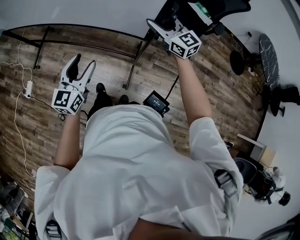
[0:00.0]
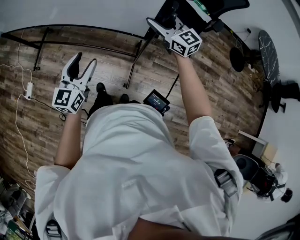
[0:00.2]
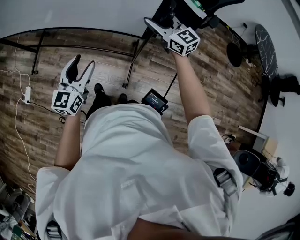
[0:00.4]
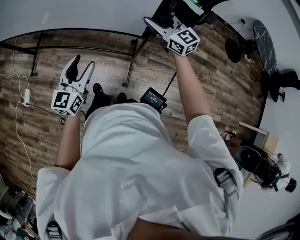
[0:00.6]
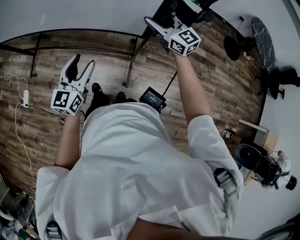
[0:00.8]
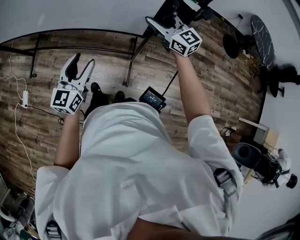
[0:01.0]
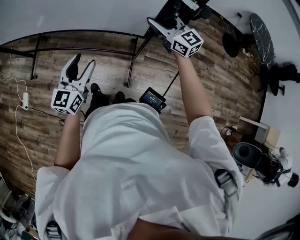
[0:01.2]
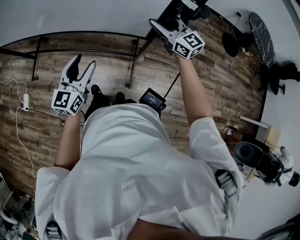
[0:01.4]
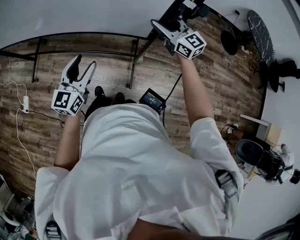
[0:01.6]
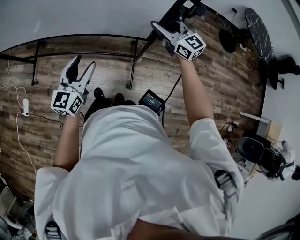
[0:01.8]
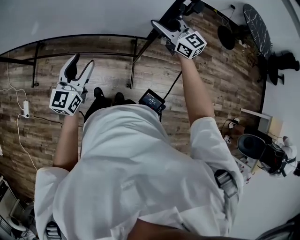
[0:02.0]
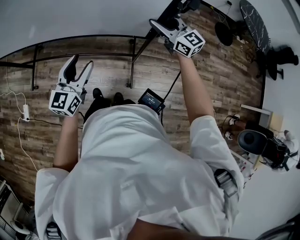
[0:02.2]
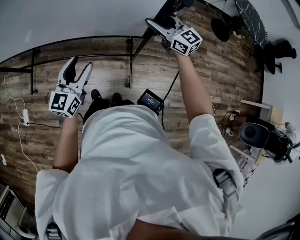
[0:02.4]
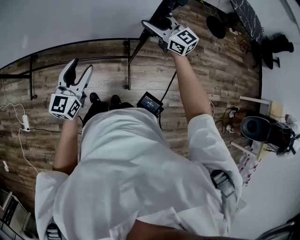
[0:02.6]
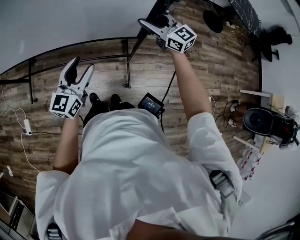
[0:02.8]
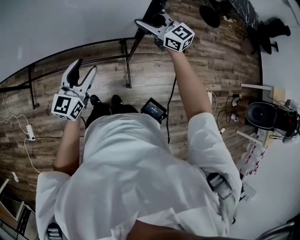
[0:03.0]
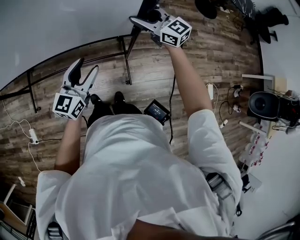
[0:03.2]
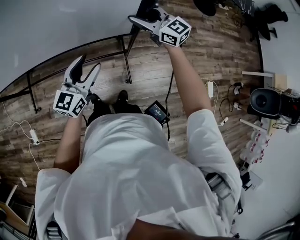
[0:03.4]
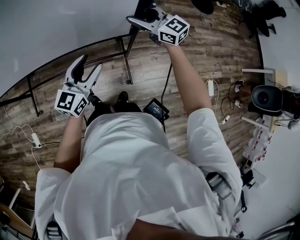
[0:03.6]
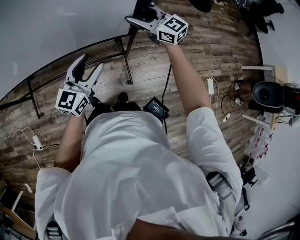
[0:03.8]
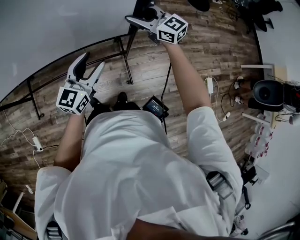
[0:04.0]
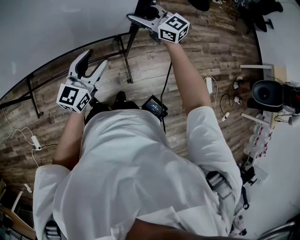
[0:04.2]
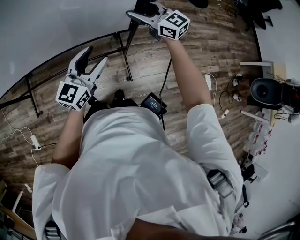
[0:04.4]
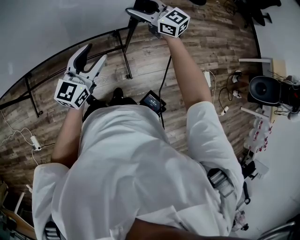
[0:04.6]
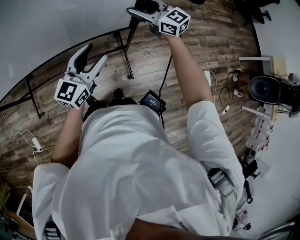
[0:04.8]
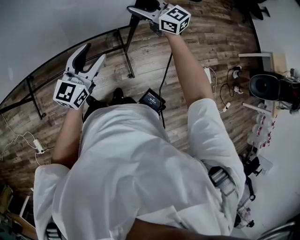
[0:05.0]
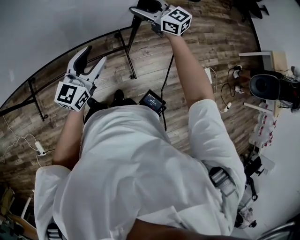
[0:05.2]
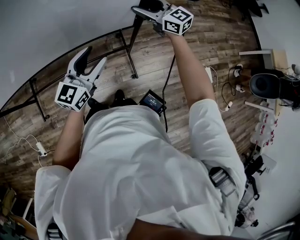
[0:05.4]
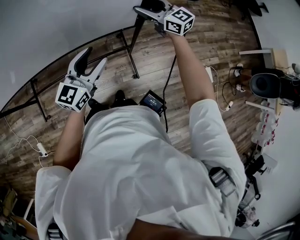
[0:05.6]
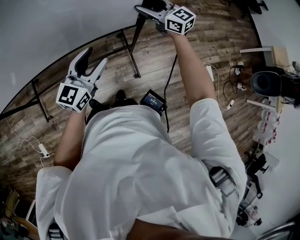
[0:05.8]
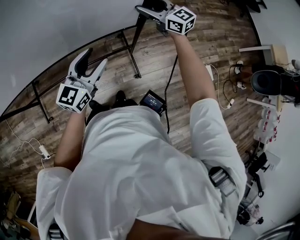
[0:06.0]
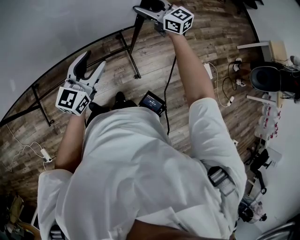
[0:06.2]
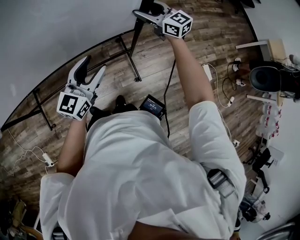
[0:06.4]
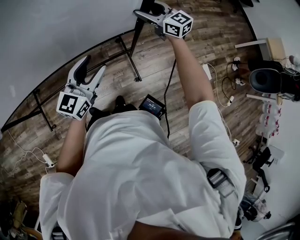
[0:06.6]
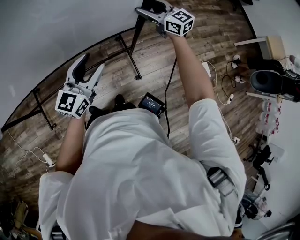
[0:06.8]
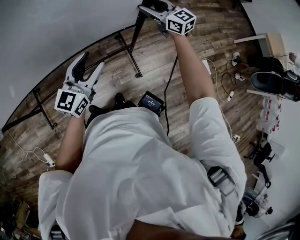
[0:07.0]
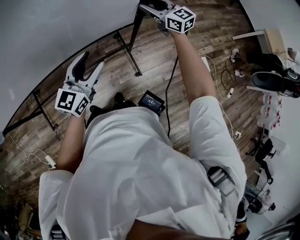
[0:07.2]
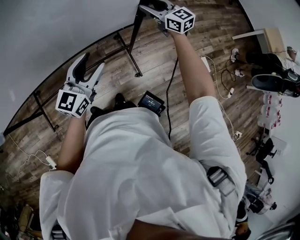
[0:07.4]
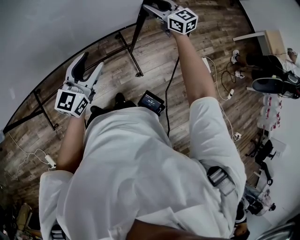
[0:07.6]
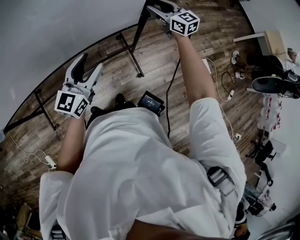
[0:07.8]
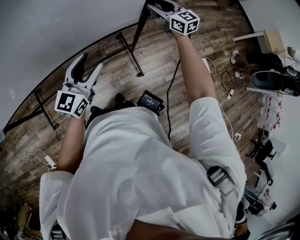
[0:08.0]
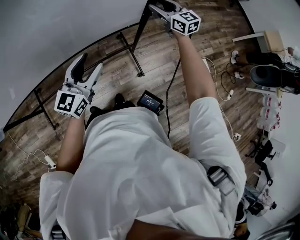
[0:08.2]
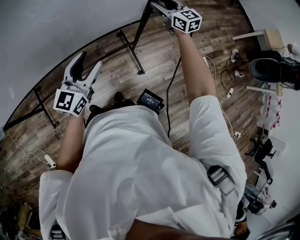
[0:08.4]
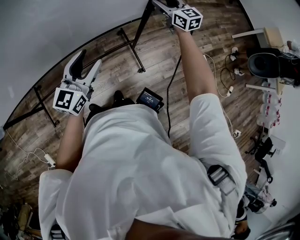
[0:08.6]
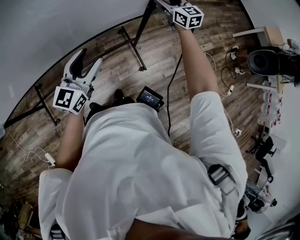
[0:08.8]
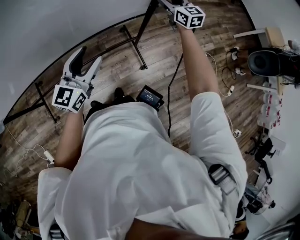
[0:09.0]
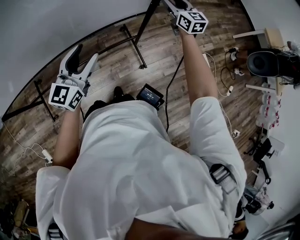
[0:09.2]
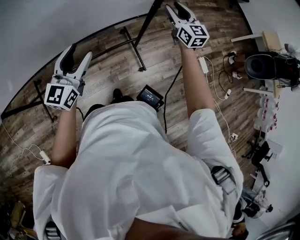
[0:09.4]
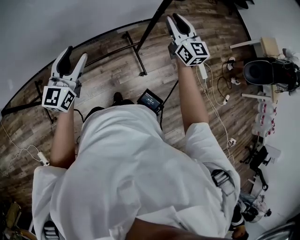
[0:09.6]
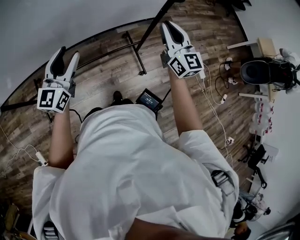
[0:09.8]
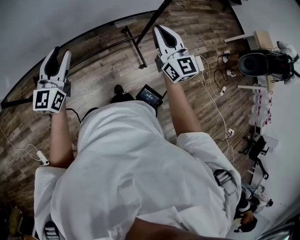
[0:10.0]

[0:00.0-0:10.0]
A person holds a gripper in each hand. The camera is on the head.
0:00.0 to 0:01.4: Both grippers travel together to the right, approximately 10 cm.
0:01.4 to 0:02.8: The grippers both shift to the right by about 10 cm.
0:02.8 to 0:04.2: The right gripper heads to the right, covering some 10 cm. The left gripper moves to the right, approximately 15 cm.
0:04.2 to 0:05.8: The right gripper travels to the right by some 10 cm, while the left gripper is displaced to the right by roughly 5 cm.
0:05.8 to 0:07.2: The right gripper is displaced to the right by about 10 cm.
0:07.2 to 0:08.6: The right gripper travels to the right by approximately 5 cm.
0:08.6 to 0:10.0: The left gripper heads to the left and backward, covering approximately 25 cm; the right gripper travels backward and to the left by approximately 35 cm, and closes up.

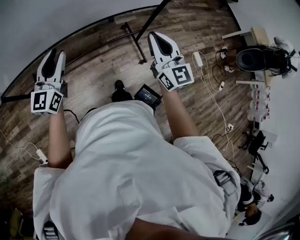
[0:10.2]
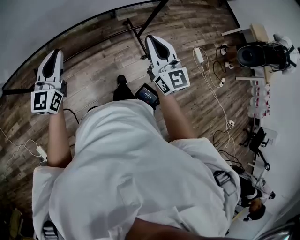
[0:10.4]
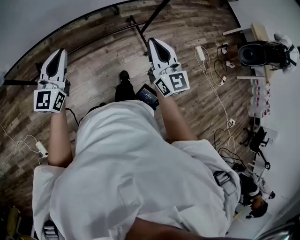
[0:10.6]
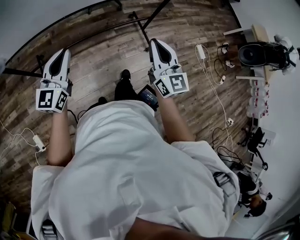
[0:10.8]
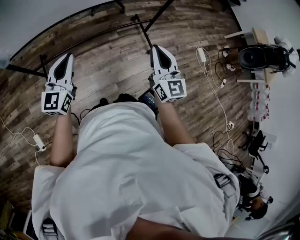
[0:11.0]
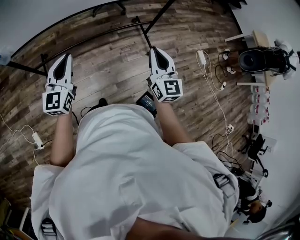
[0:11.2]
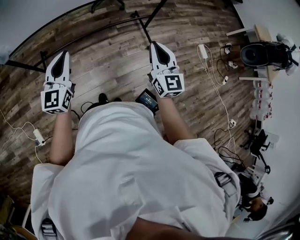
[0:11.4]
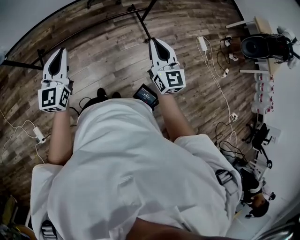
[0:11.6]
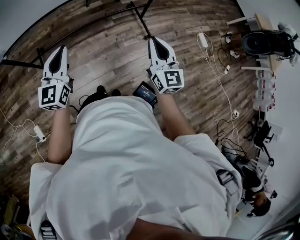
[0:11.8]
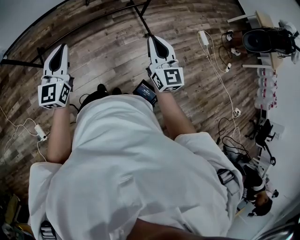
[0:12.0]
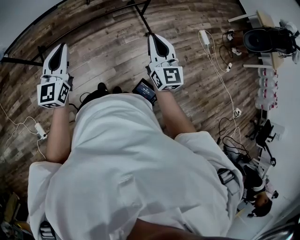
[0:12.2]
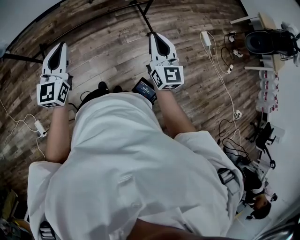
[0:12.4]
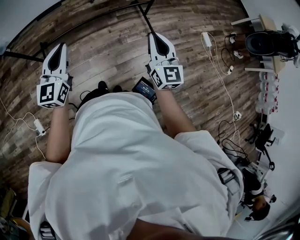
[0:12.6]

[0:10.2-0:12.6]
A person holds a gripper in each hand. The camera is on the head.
0:10.2 to 0:11.4: Both grippers travel together backward, about 25 cm. The left gripper closes up.
0:11.4 to 0:12.6: The right gripper goes roughly 5 cm backward; the left gripper shifts about 10 cm backward and to the right.

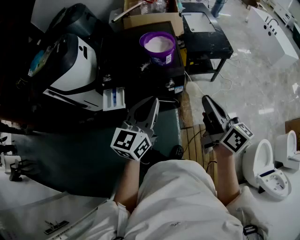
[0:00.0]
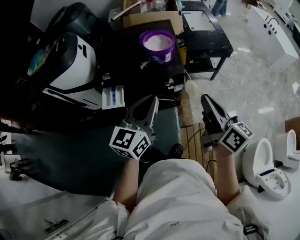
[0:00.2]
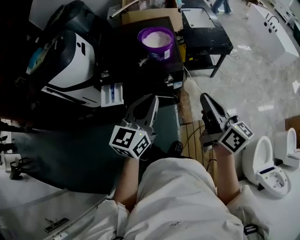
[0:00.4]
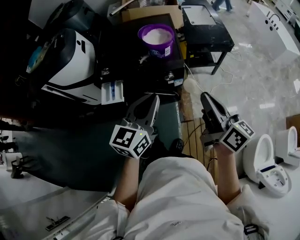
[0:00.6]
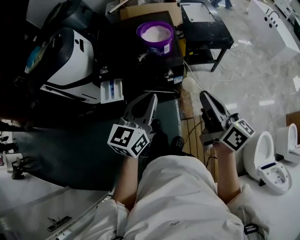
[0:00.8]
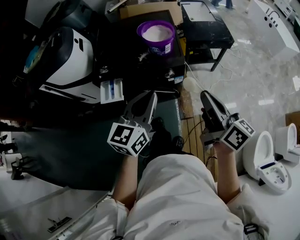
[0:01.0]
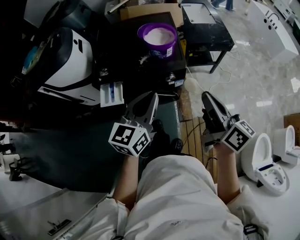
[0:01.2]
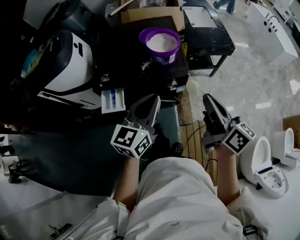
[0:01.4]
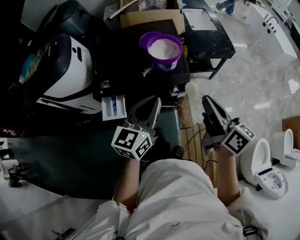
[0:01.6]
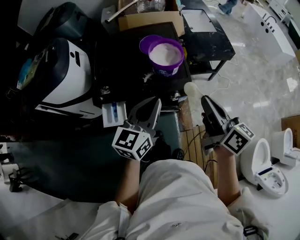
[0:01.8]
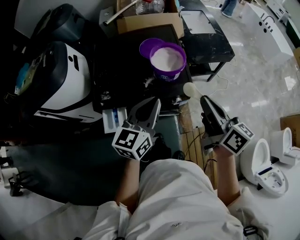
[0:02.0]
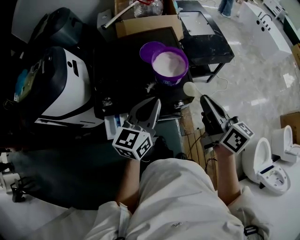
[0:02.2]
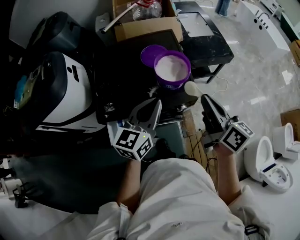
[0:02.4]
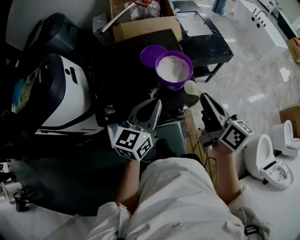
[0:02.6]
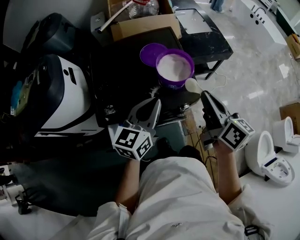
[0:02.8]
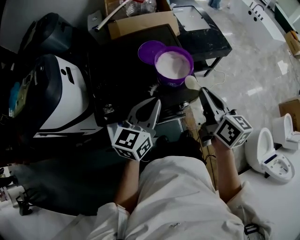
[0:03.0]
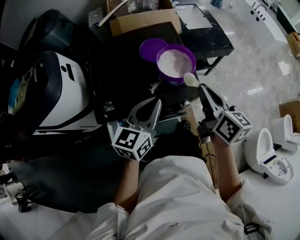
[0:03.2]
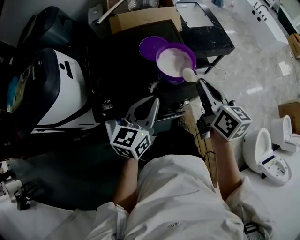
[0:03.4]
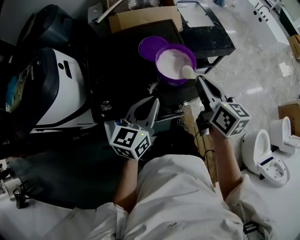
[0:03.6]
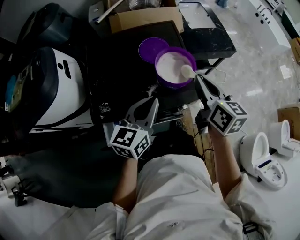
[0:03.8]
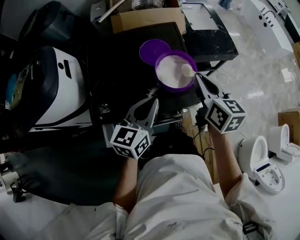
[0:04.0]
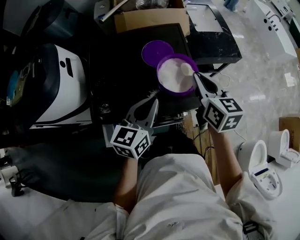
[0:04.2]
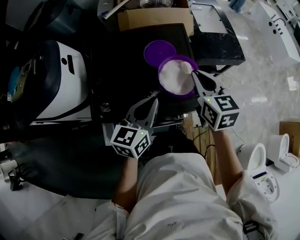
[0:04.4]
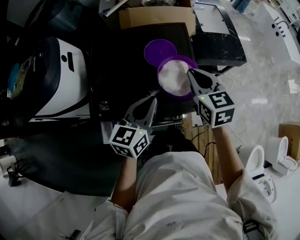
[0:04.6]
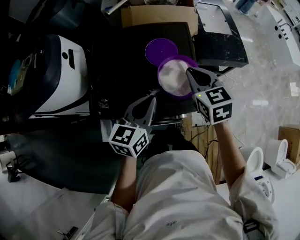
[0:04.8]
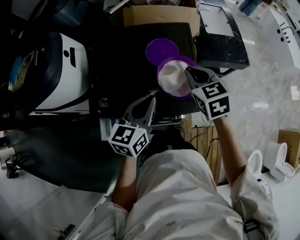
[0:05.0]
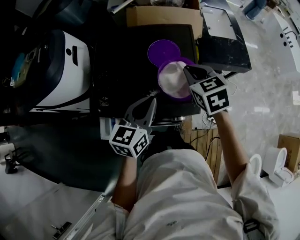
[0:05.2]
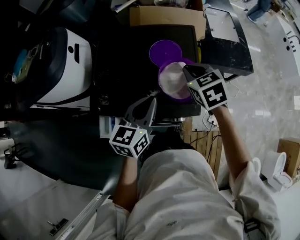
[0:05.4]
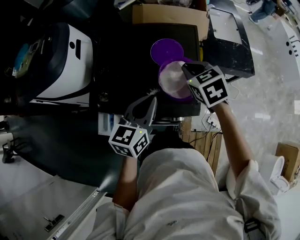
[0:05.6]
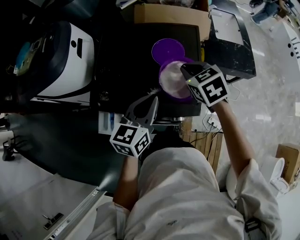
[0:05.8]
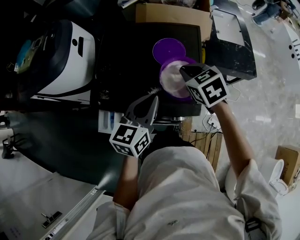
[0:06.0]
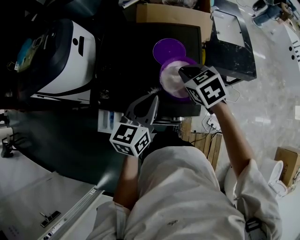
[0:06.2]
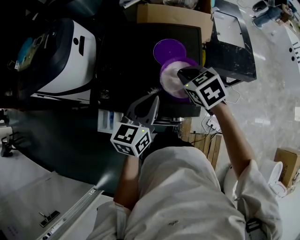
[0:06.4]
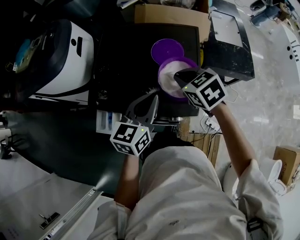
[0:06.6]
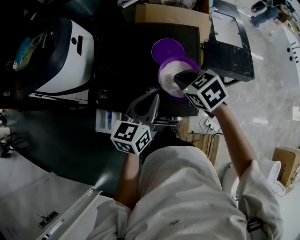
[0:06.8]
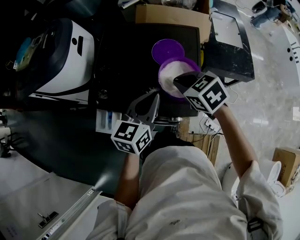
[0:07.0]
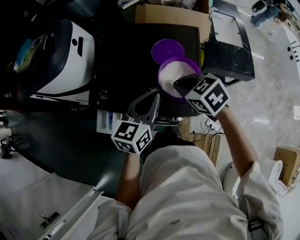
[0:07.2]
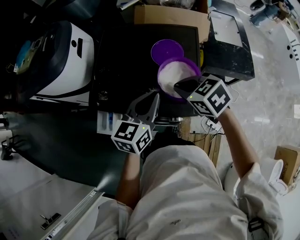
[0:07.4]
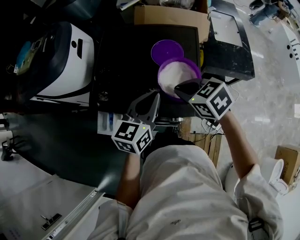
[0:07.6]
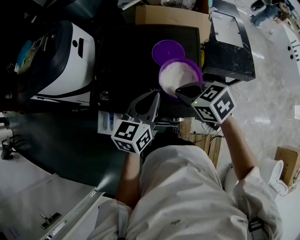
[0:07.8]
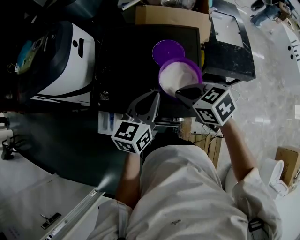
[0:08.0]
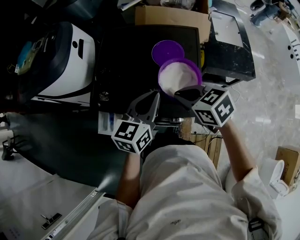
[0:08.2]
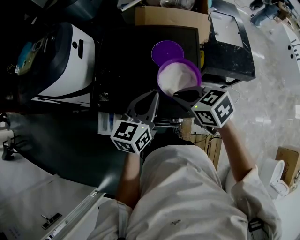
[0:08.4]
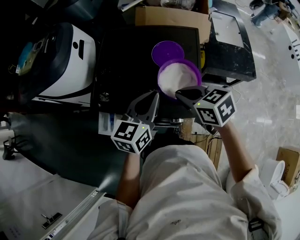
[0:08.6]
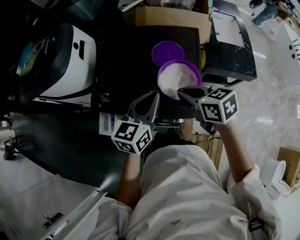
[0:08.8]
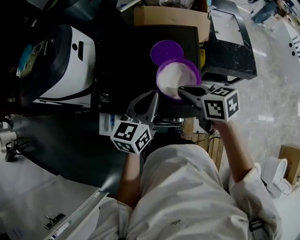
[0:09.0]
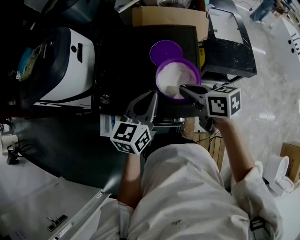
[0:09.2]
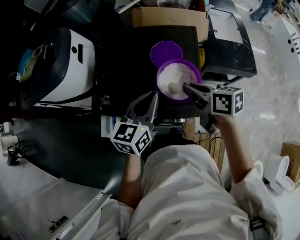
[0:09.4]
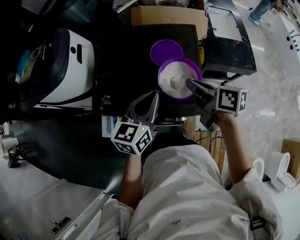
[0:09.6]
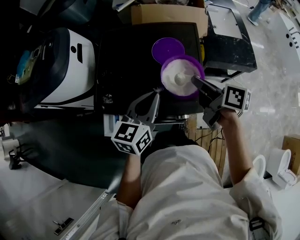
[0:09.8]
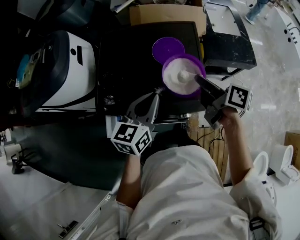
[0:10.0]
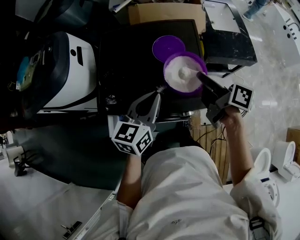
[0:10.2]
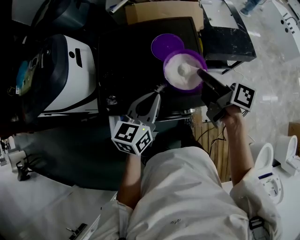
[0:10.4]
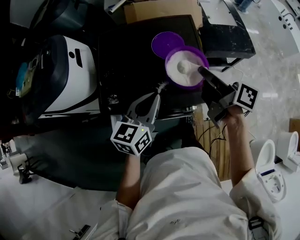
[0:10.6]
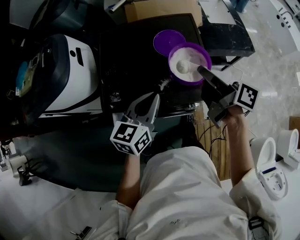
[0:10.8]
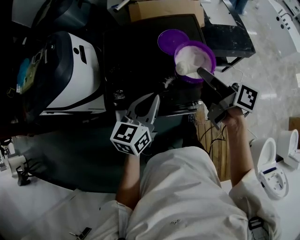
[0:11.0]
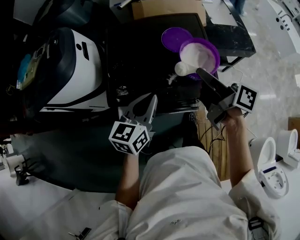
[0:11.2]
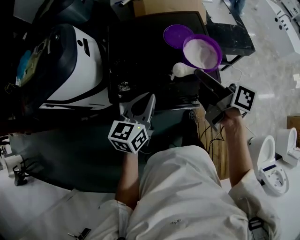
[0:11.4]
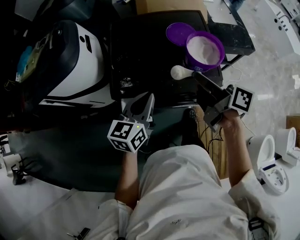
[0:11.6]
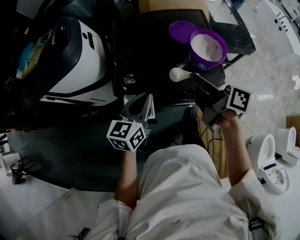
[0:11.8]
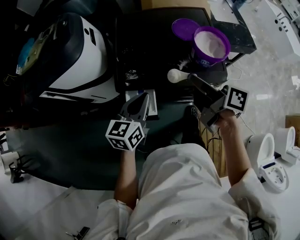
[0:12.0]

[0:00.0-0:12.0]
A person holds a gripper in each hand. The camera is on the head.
0:00.0 to 0:01.6: The two grippers go approximately 5 cm forward.
0:01.6 to 0:03.0: The grippers both shift forward and to the left by roughly 15 cm.
0:03.0 to 0:04.4: The left gripper is displaced forward by some 5 cm, while the right gripper is displaced forward by approximately 15 cm, and rotates roughly 30 degrees.
0:04.4 to 0:06.0: The right gripper moves downward, some 5 cm, and rotates approximately 40 degrees.
0:06.0 to 0:07.6: The right gripper shifts approximately 5 cm backward.
0:07.6 to 0:09.0: The right gripper swivels some 30 degrees.
0:09.0 to 0:10.4: The right gripper shifts about 5 cm to the right, and rotates some 50 degrees.
0:10.4 to 0:12.0: Both grippers move to the left and backward, about 20 cm.
